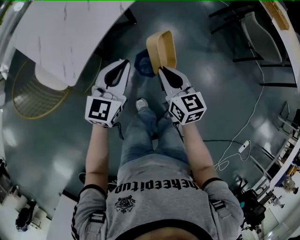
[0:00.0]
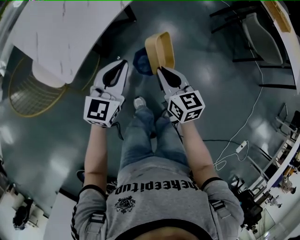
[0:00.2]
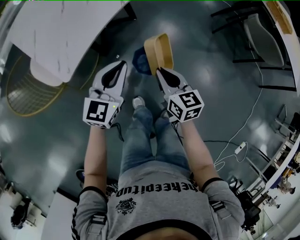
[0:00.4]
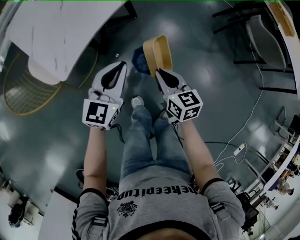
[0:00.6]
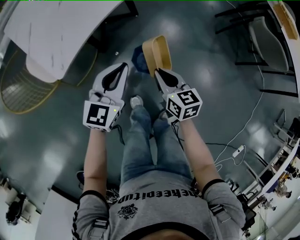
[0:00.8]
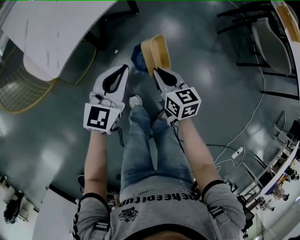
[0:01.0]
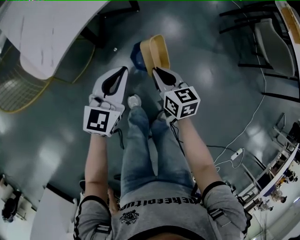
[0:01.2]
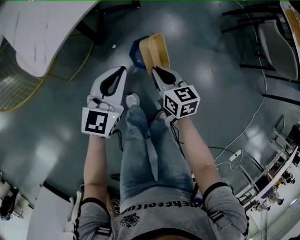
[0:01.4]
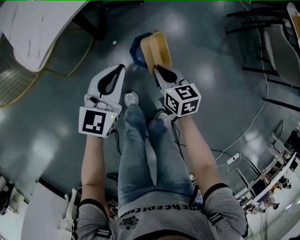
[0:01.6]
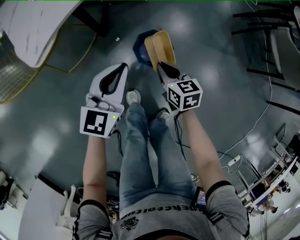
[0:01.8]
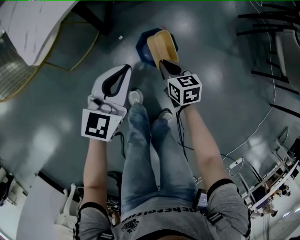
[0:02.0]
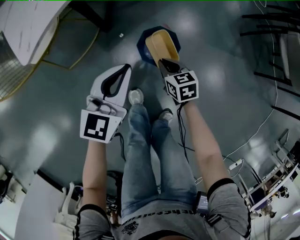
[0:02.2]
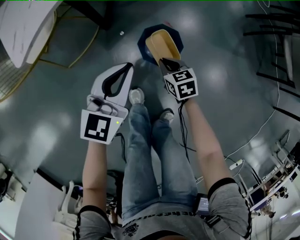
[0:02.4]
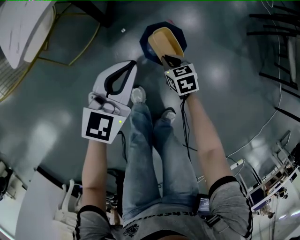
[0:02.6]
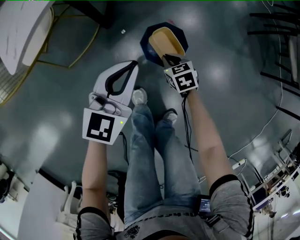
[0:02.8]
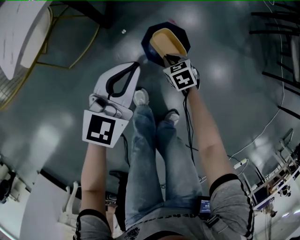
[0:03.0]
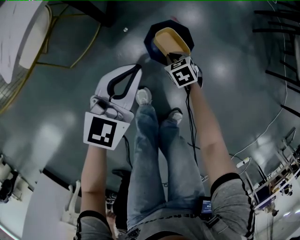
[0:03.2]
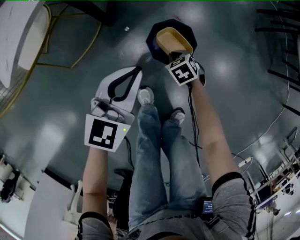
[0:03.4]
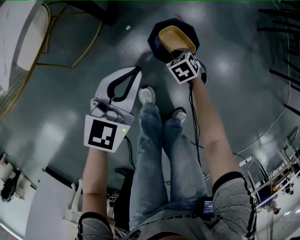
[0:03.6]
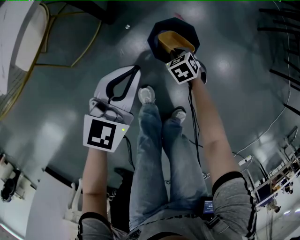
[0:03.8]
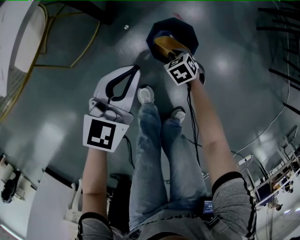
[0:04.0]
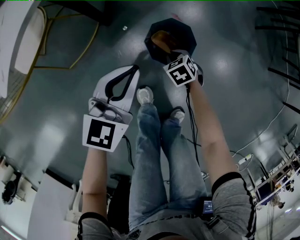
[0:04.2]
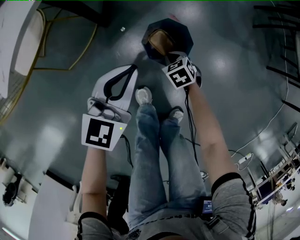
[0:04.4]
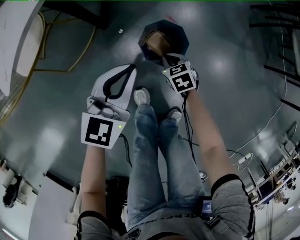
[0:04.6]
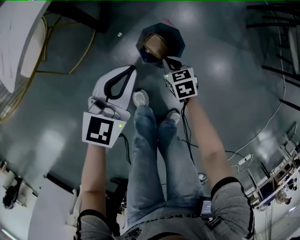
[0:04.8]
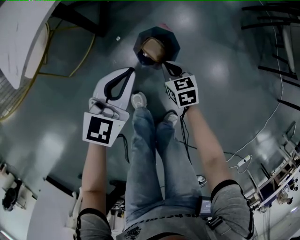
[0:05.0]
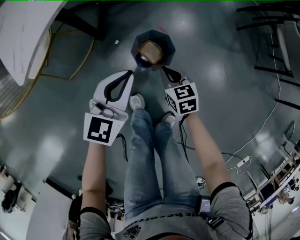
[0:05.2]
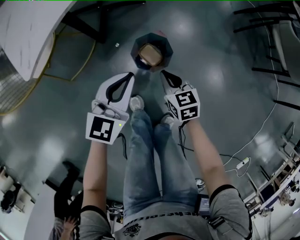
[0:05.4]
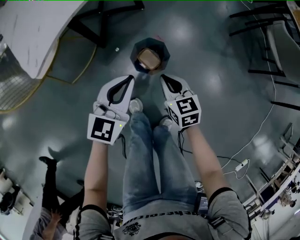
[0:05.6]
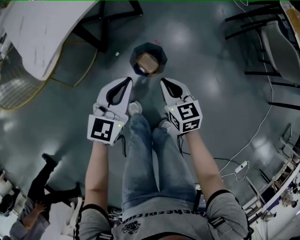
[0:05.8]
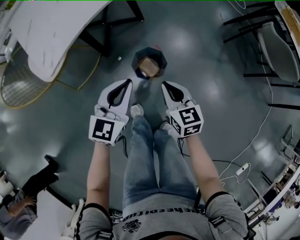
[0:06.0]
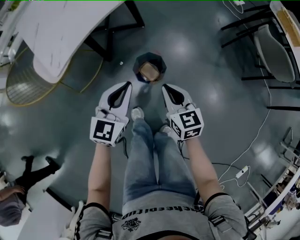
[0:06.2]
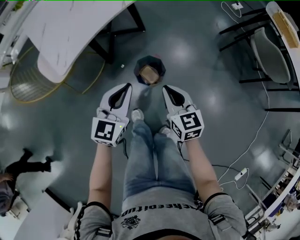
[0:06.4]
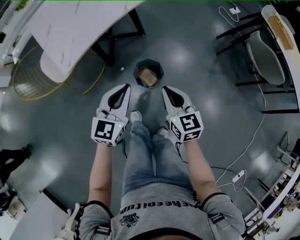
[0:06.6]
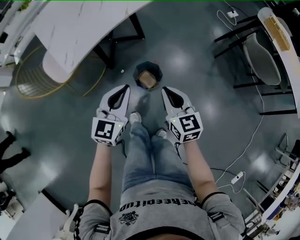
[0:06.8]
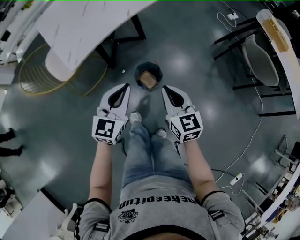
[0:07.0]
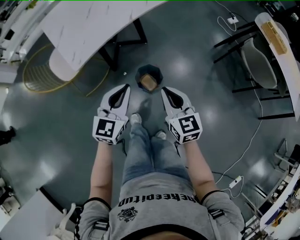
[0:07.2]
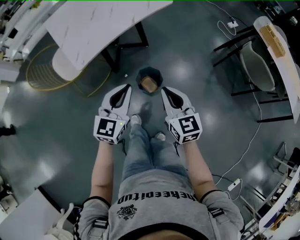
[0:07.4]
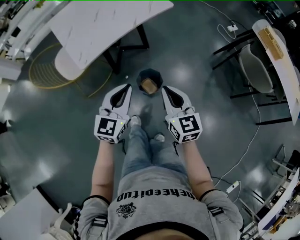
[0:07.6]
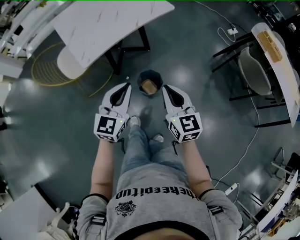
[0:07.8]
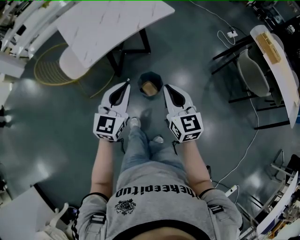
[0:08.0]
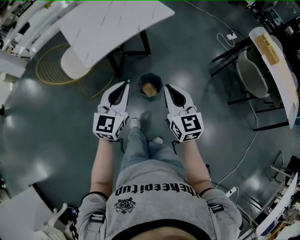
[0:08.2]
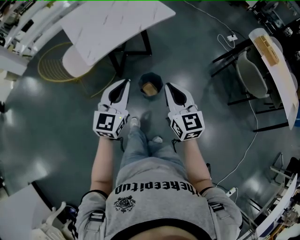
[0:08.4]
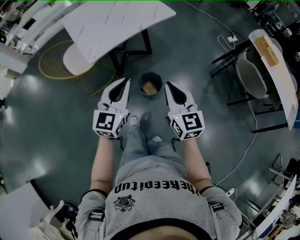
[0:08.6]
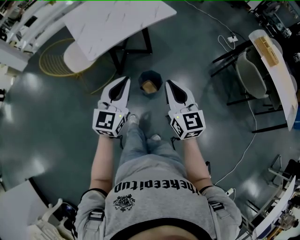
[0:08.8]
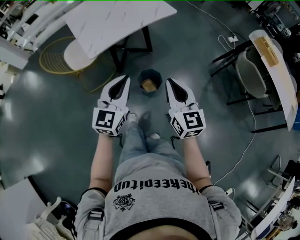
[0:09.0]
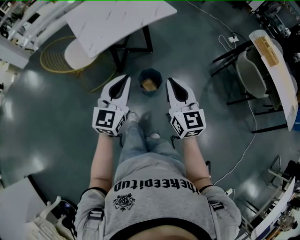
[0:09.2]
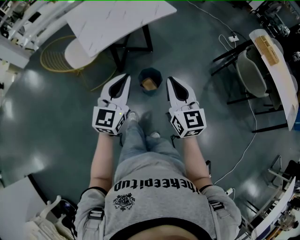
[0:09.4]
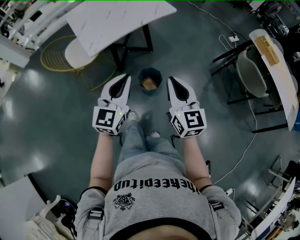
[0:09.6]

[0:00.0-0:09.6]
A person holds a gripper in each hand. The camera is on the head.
0:00.0 to 0:01.6: The two grippers go approximately 20 cm downward.
0:01.6 to 0:03.2: The left gripper heads downward, covering some 10 cm; the right gripper moves downward, roughly 25 cm, and swivels approximately 40 degrees.
0:03.2 to 0:04.8: The right gripper shifts about 5 cm upward.
0:04.8 to 0:06.4: The left gripper is displaced upward by approximately 15 cm. The right gripper is displaced upward by roughly 35 cm, and changes its angle by approximately 30 degrees.
0:06.4 to 0:08.0: The right gripper travels upward by approximately 20 cm. Meanwhile the left gripper goes some 15 cm upward and backward.
0:08.0 to 0:09.6: Both grippers travel together backward, about 5 cm.

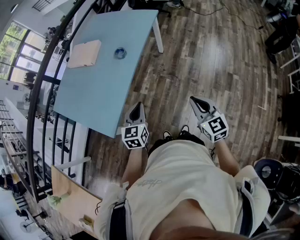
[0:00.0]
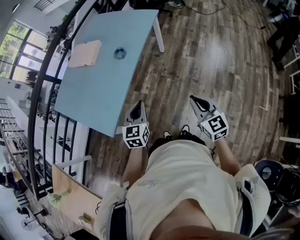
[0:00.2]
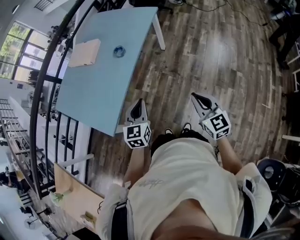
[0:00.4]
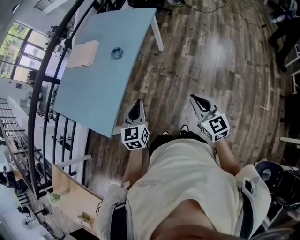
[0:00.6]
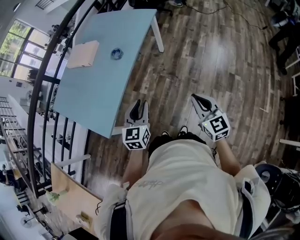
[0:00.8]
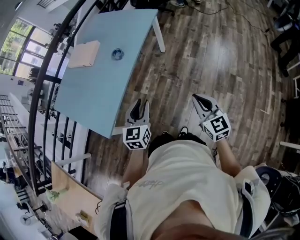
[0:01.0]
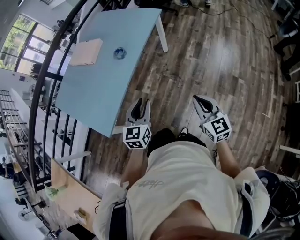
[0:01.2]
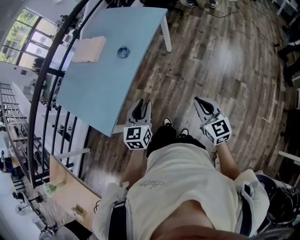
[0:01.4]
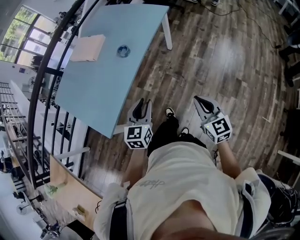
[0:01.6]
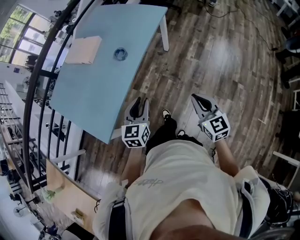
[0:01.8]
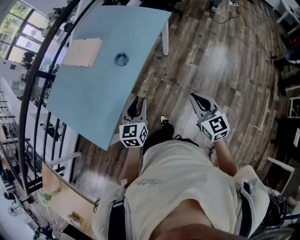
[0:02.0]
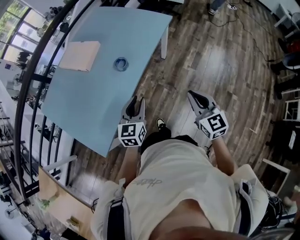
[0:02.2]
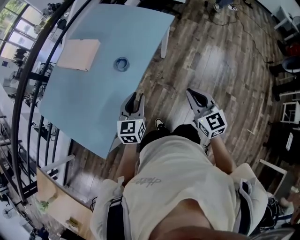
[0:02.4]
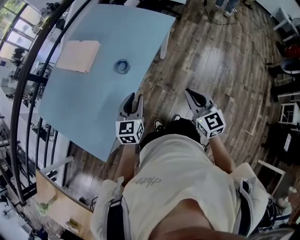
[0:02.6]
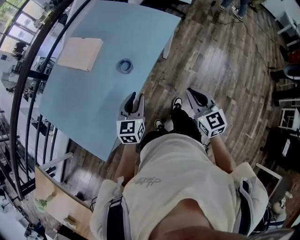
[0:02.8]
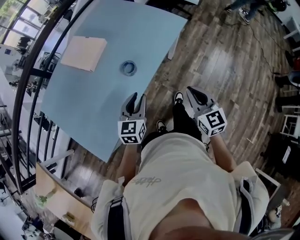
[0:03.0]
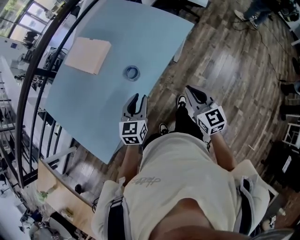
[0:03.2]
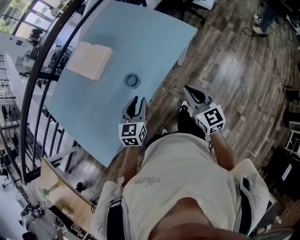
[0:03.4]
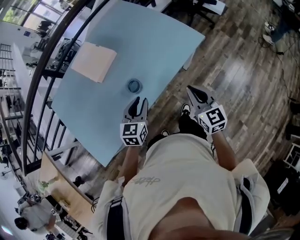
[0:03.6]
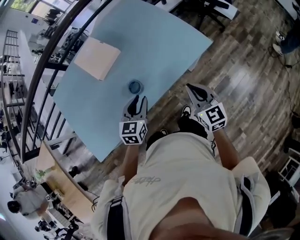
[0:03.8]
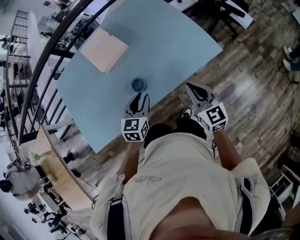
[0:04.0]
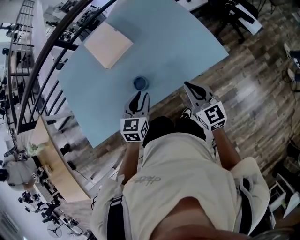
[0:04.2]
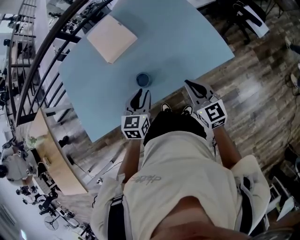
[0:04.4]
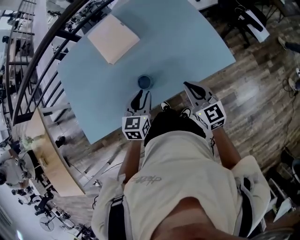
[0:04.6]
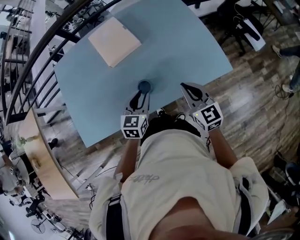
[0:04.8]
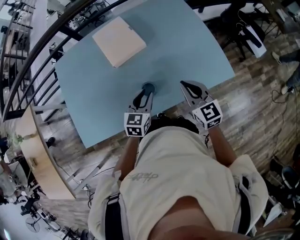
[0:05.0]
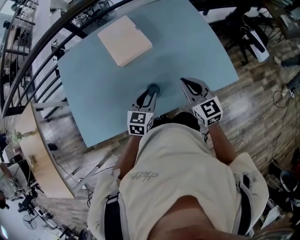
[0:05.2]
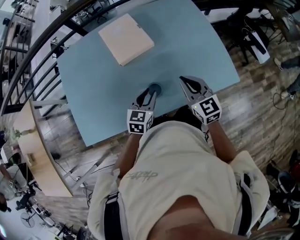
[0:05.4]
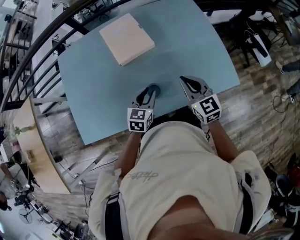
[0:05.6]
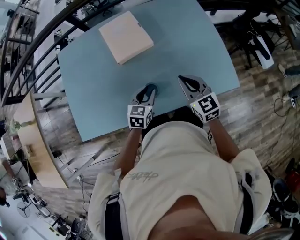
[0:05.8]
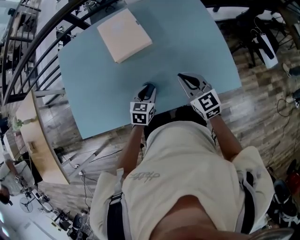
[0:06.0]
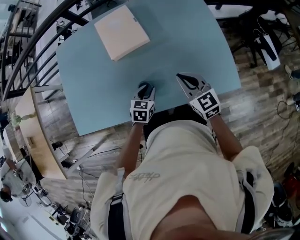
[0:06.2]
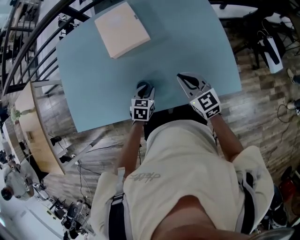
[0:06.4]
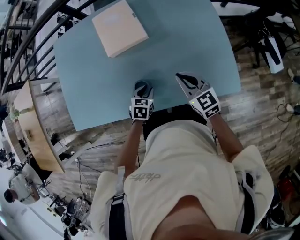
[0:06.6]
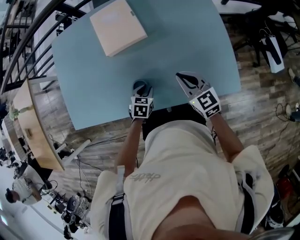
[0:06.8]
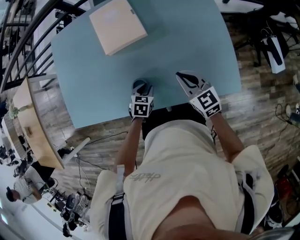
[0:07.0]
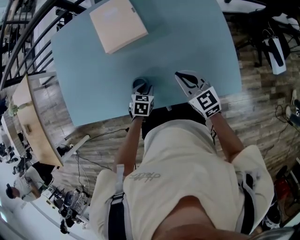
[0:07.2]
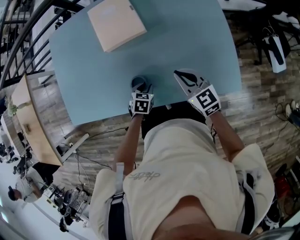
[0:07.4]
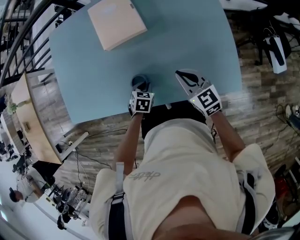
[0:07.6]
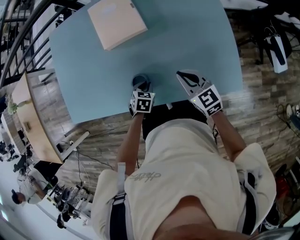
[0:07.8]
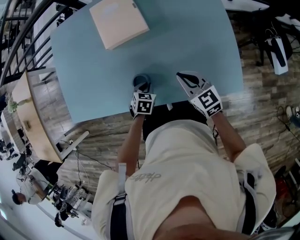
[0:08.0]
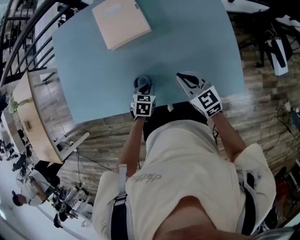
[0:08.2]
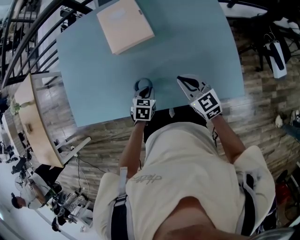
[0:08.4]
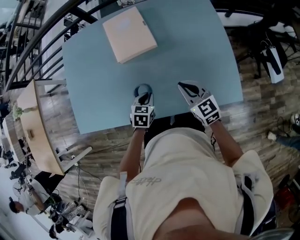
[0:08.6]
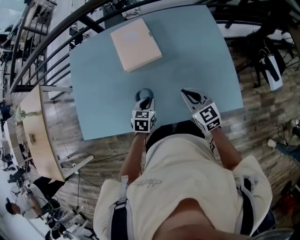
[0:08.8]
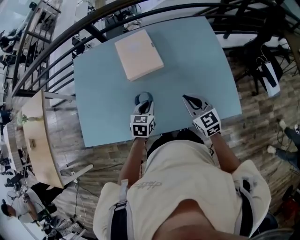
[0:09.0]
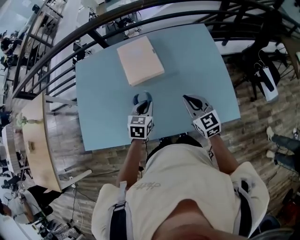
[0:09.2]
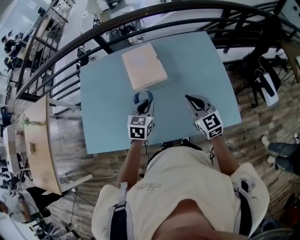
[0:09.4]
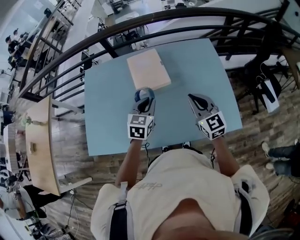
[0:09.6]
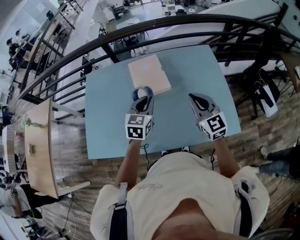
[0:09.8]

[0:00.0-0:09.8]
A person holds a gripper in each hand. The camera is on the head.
0:00.0 to 0:01.4: Both grippers move to the right, some 5 cm. The left gripper opens.
0:01.4 to 0:02.8: Both grippers travel together forward, roughly 25 cm.
0:02.8 to 0:04.2: The right gripper changes place by some 30 cm, and turns by roughly 40 degrees. The left gripper changes place by about 20 cm, and changes its angle by some 30 degrees.
0:04.2 to 0:05.6: The right gripper travels forward and to the left by approximately 15 cm. Meanwhile the left gripper moves forward and to the left, some 10 cm.
0:05.6 to 0:07.0: The left gripper is displaced downward by some 15 cm, and swivels approximately 30 degrees, while the right gripper is displaced downward and to the right by about 10 cm.
0:07.0 to 0:08.4: The grippers stay close to where they were, moving slightly.
0:08.4 to 0:09.8: The right gripper shifts about 20 cm upward, and turns by some 30 degrees; the left gripper travels upward by roughly 25 cm, and tilts its fingers about 30 degrees upward.

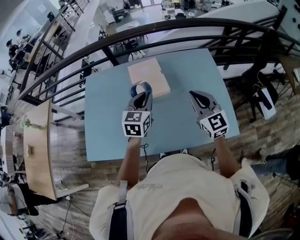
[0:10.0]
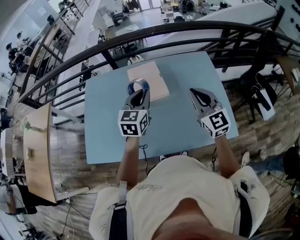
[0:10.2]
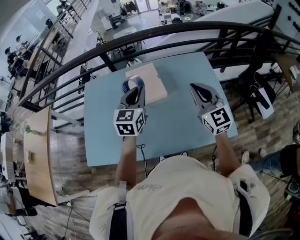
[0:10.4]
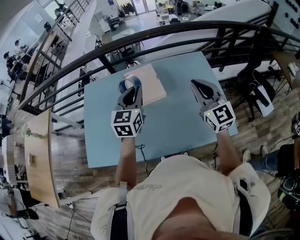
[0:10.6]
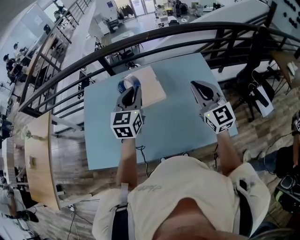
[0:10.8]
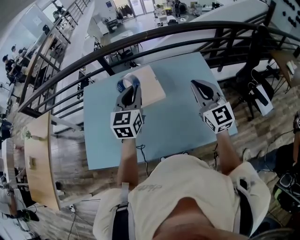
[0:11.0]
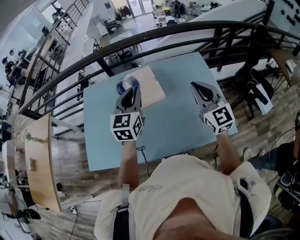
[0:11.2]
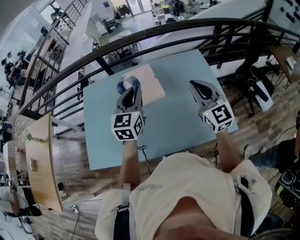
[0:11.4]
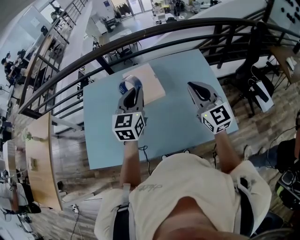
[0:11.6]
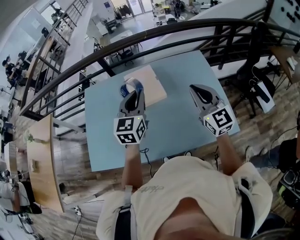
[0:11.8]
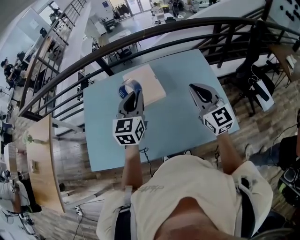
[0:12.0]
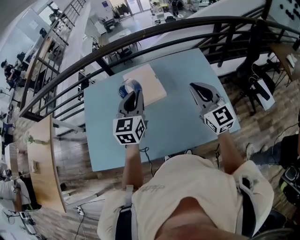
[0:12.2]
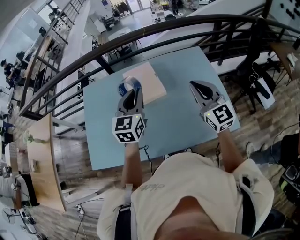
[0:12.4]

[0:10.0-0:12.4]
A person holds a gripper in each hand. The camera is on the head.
0:10.0 to 0:11.2: The two grippers go roughly 10 cm upward.
0:11.2 to 0:12.4: The grippers stay close to where they were, moving slightly.

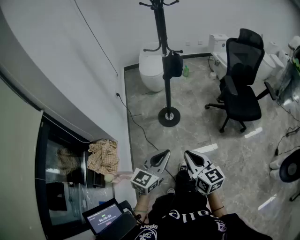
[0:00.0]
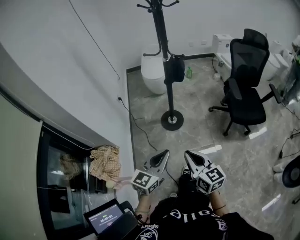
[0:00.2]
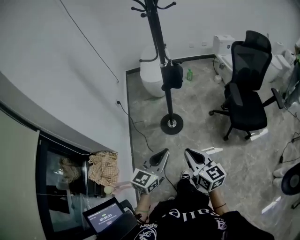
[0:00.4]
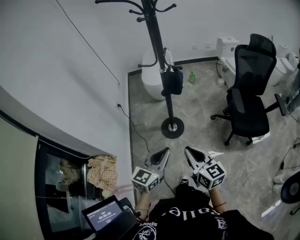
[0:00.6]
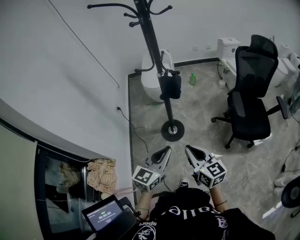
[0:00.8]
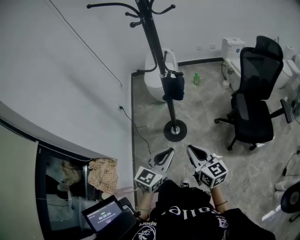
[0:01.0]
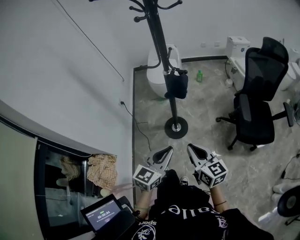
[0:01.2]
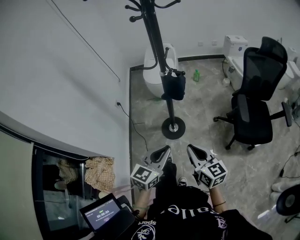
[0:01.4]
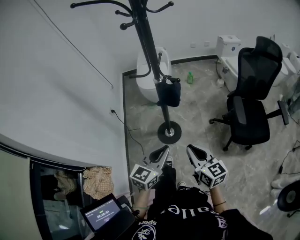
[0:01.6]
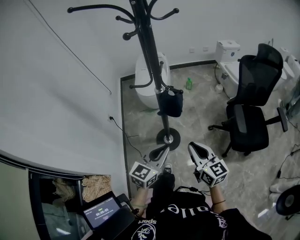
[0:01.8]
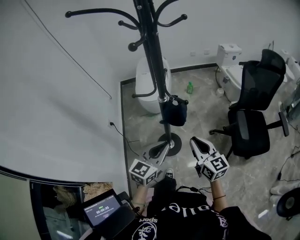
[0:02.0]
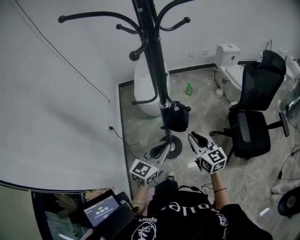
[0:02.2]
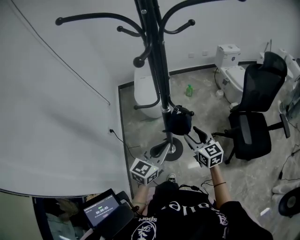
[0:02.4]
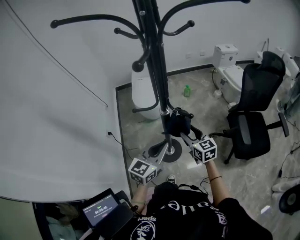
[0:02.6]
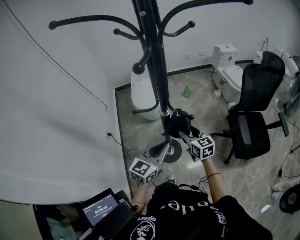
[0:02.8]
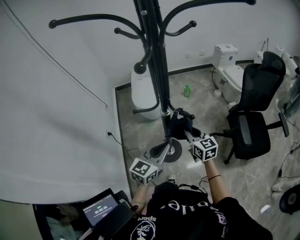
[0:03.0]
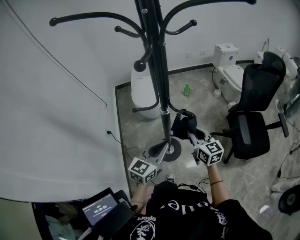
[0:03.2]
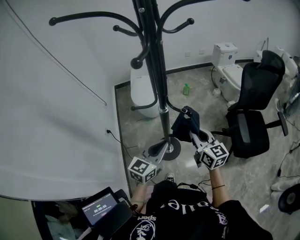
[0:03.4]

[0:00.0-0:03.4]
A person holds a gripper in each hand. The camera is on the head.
0:00.0 to 0:01.6: Both grippers travel together forward, some 35 cm.
0:01.6 to 0:03.4: Both grippers move forward, about 20 cm. The right gripper opens, then closes once more.
